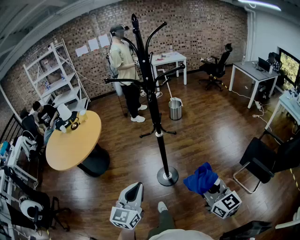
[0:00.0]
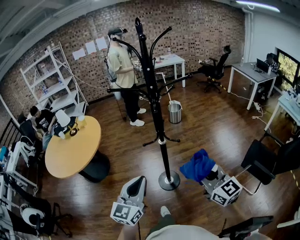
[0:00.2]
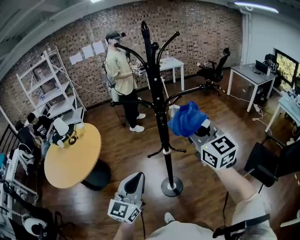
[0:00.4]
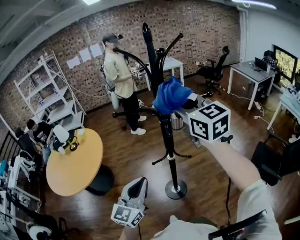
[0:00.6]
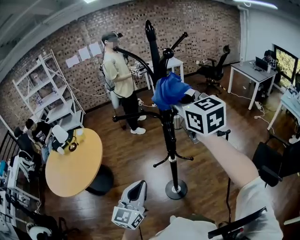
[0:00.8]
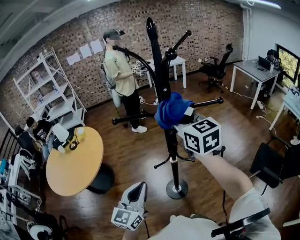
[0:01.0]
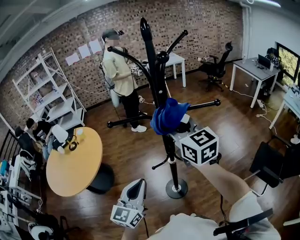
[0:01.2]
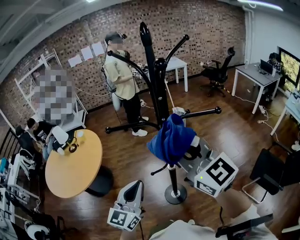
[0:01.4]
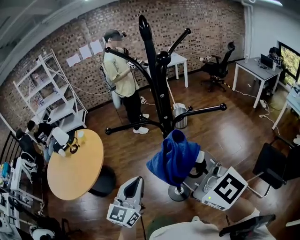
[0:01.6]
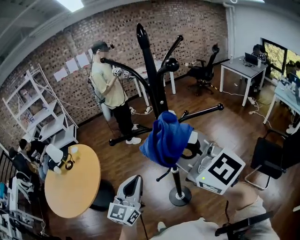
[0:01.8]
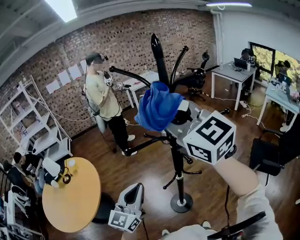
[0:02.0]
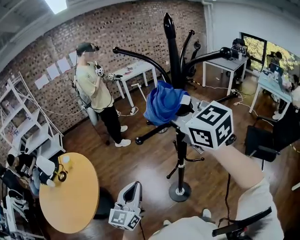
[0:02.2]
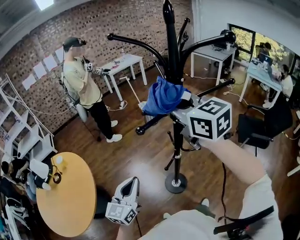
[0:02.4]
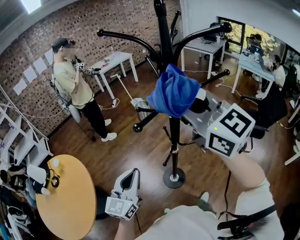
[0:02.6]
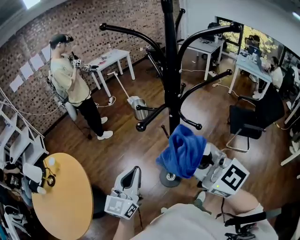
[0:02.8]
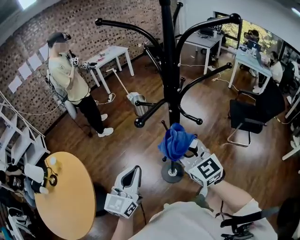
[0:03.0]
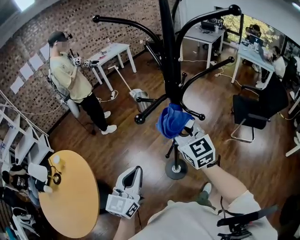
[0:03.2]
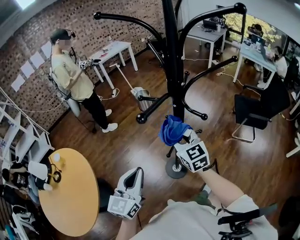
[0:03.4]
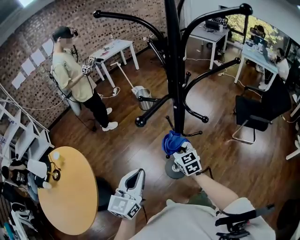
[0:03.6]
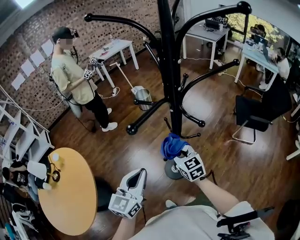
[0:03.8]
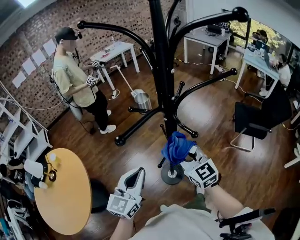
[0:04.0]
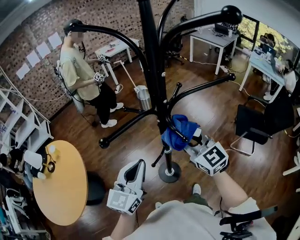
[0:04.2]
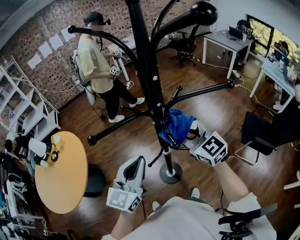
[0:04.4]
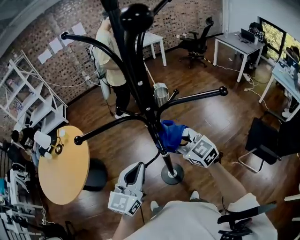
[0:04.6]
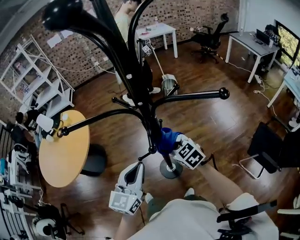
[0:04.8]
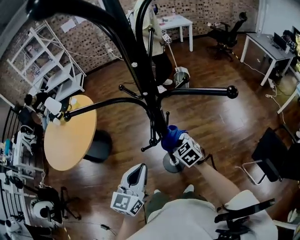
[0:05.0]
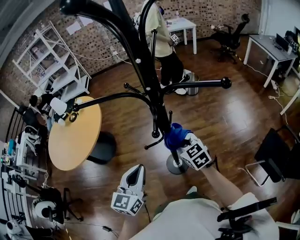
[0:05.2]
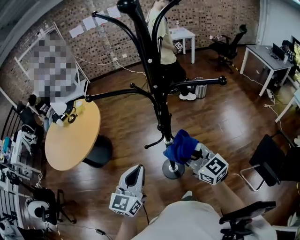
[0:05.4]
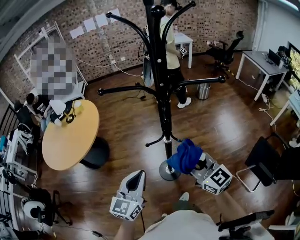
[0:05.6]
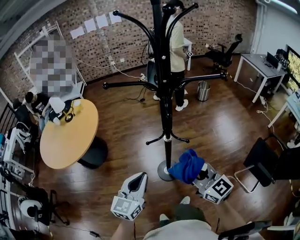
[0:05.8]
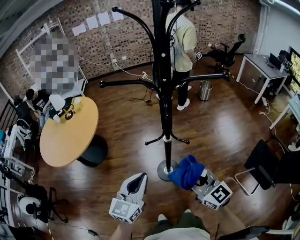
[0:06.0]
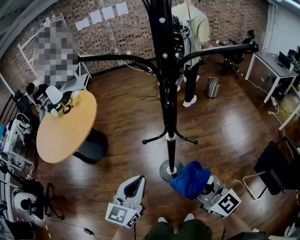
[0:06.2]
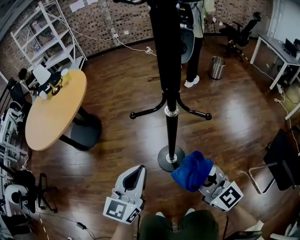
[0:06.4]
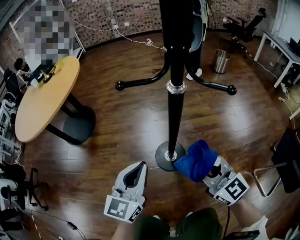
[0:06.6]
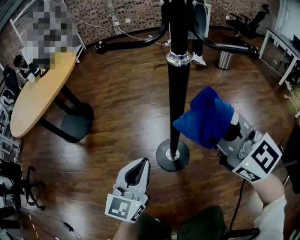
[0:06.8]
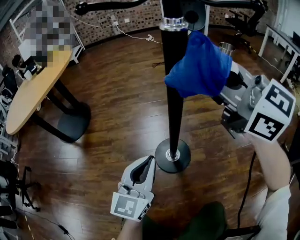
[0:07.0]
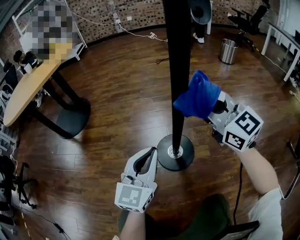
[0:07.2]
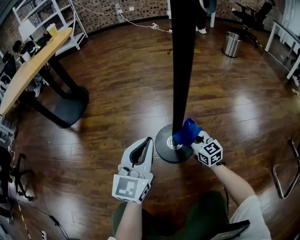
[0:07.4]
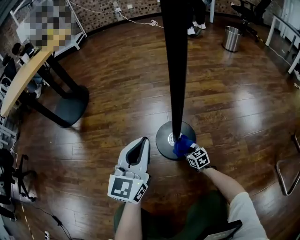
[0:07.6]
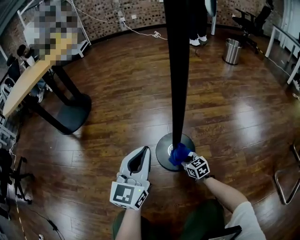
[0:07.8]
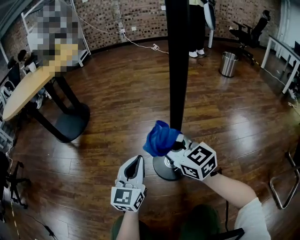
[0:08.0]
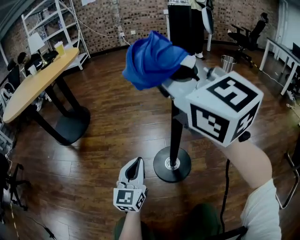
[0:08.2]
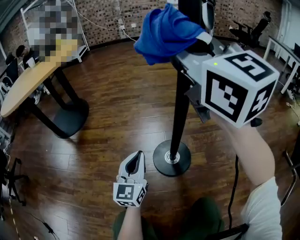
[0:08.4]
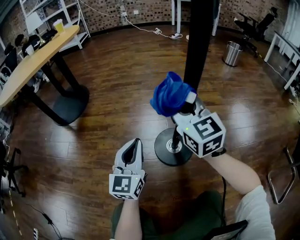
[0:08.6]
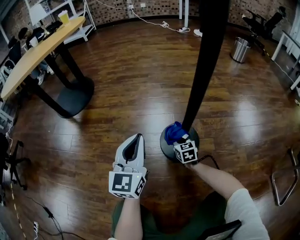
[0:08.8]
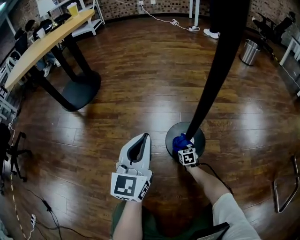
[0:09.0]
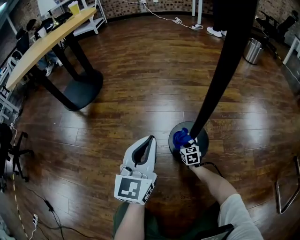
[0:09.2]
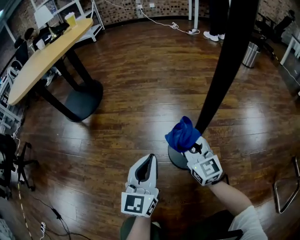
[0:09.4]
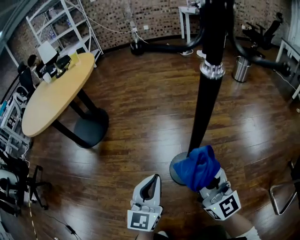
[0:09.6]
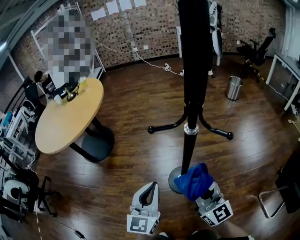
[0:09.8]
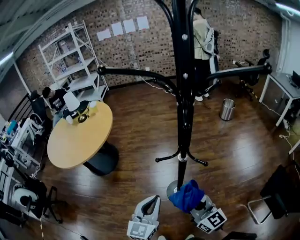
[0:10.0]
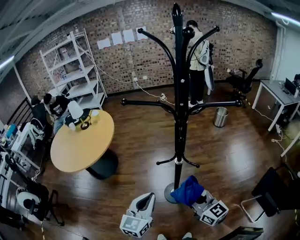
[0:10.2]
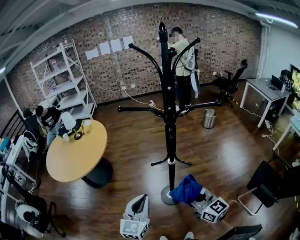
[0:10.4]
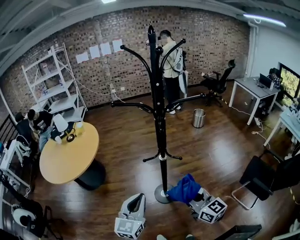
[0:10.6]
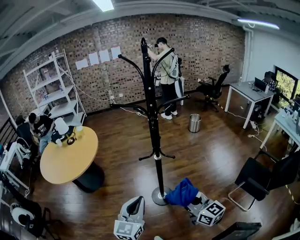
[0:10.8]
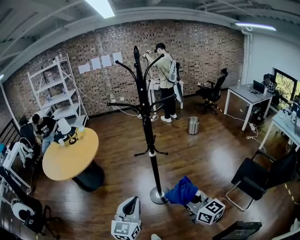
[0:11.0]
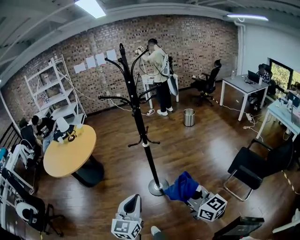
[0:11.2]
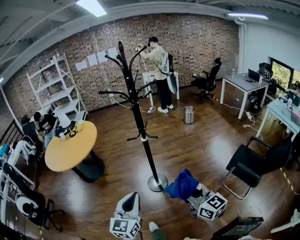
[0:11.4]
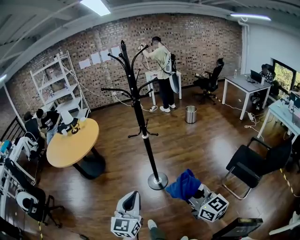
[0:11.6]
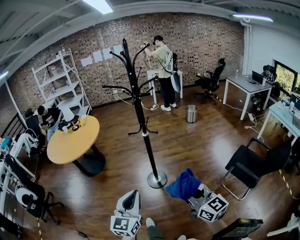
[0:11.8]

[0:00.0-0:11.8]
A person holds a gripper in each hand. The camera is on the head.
0:00.0 to 0:01.4: The left gripper shifts roughly 20 cm forward, while the right gripper travels forward, upward and to the left by approximately 40 cm.
0:01.4 to 0:03.0: The left gripper shifts by some 15 cm, and rotates roughly 30 degrees. Meanwhile the right gripper goes up and down, approximately 30 cm each way, reversing 3 times, and swivels about 40 degrees.
0:03.0 to 0:04.4: The left gripper shifts roughly 10 cm to the right, while the right gripper moves forward and to the right, some 15 cm, goes downward and returns, about 20 cm each way, and rotates approximately 20 degrees.
0:04.4 to 0:06.0: The grippers both shift backward and downward by about 20 cm. The left gripper turns by roughly 20 degrees. Meanwhile the right gripper changes its angle by about 20 degrees.
0:06.0 to 0:07.4: The right gripper swings up and down, some 80 cm each way, with 2 reversals, while the left gripper goes approximately 60 cm downward.
0:07.4 to 0:08.8: The right gripper moves up and down over approximately 70 cm, changing direction 2 times, and swivels approximately 20 degrees; the left gripper travels to the left by about 10 cm.
0:08.8 to 0:10.4: The right gripper is displaced upward by about 80 cm, and tips its fingers upward by about 30 degrees, while the left gripper goes about 60 cm upward.
0:10.4 to 0:11.8: The two grippers go roughly 30 cm backward.

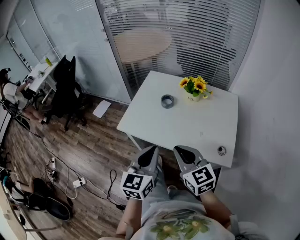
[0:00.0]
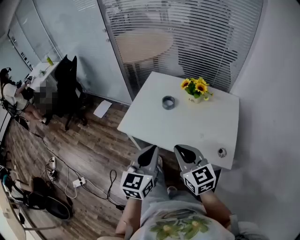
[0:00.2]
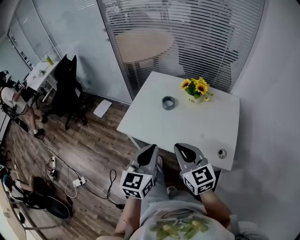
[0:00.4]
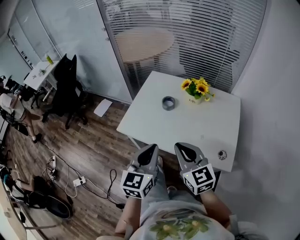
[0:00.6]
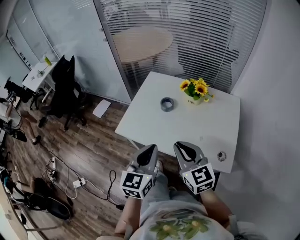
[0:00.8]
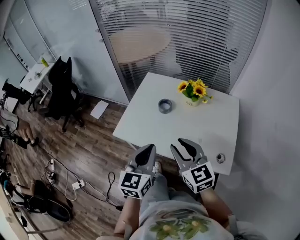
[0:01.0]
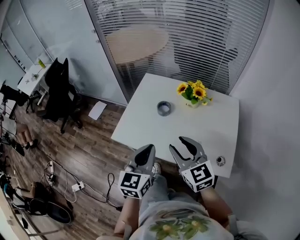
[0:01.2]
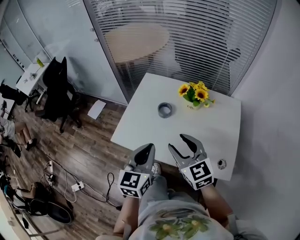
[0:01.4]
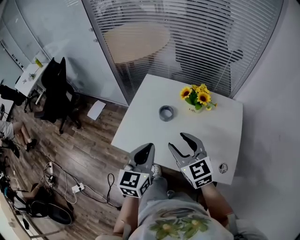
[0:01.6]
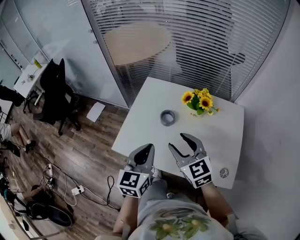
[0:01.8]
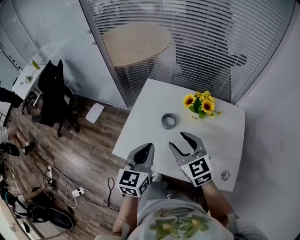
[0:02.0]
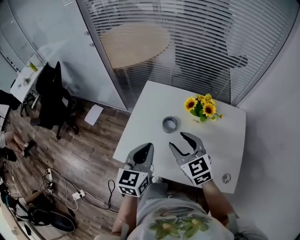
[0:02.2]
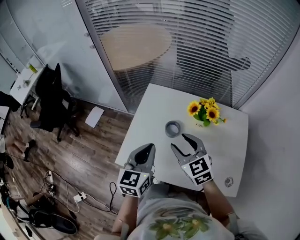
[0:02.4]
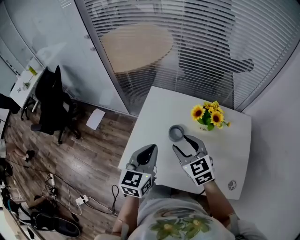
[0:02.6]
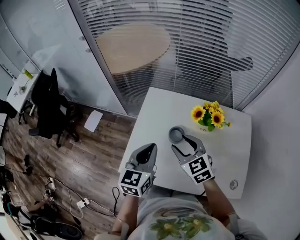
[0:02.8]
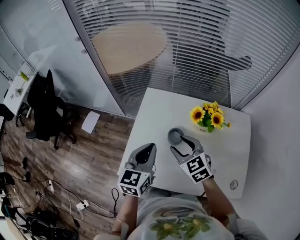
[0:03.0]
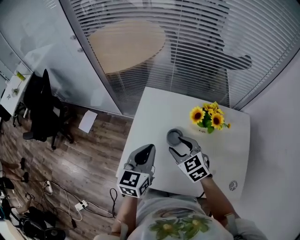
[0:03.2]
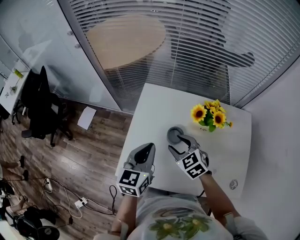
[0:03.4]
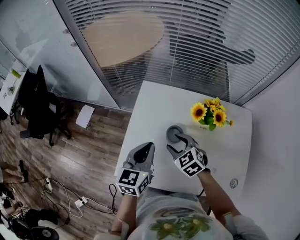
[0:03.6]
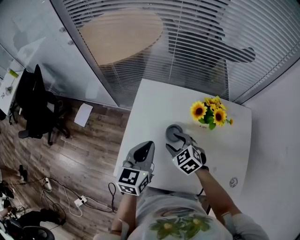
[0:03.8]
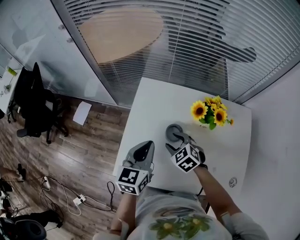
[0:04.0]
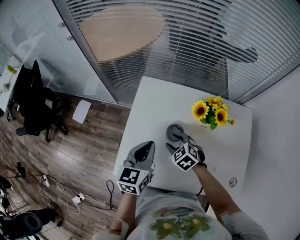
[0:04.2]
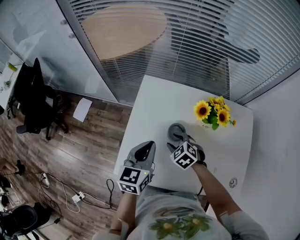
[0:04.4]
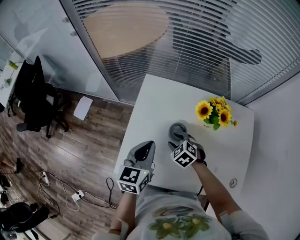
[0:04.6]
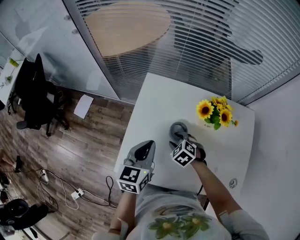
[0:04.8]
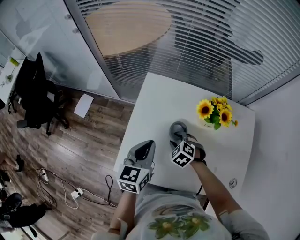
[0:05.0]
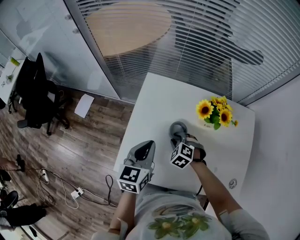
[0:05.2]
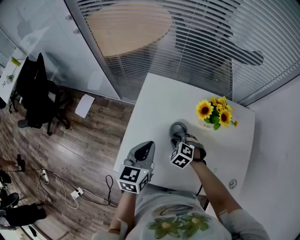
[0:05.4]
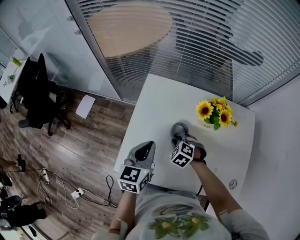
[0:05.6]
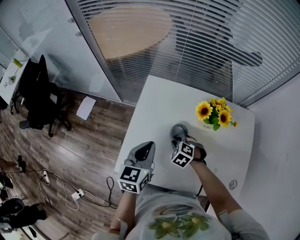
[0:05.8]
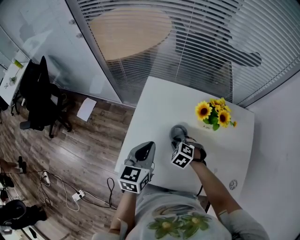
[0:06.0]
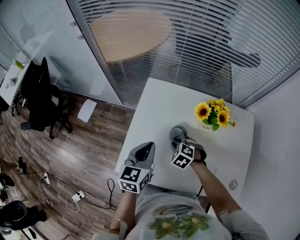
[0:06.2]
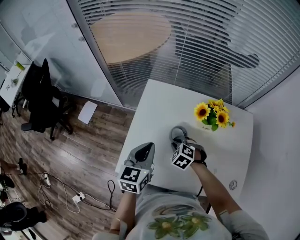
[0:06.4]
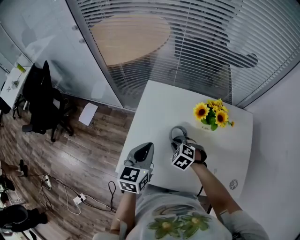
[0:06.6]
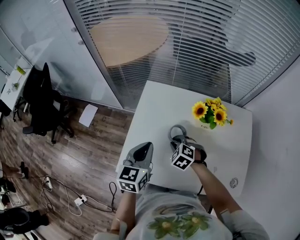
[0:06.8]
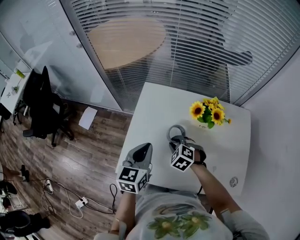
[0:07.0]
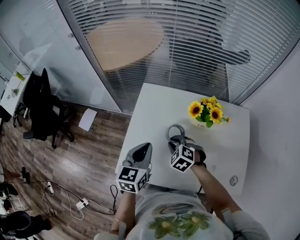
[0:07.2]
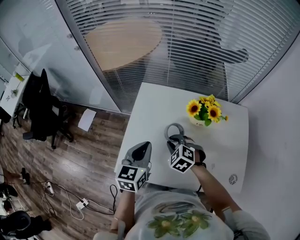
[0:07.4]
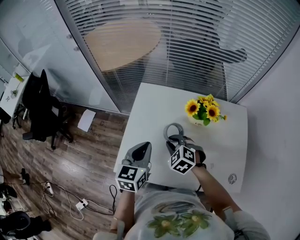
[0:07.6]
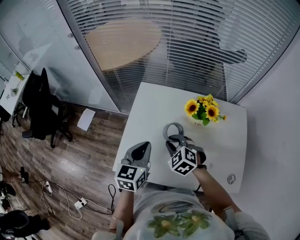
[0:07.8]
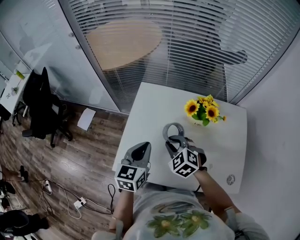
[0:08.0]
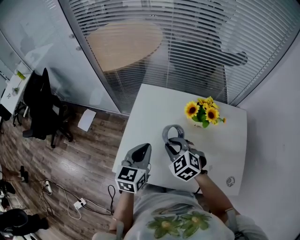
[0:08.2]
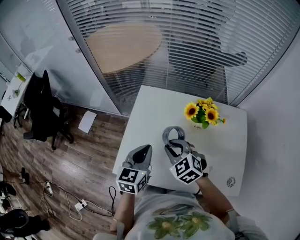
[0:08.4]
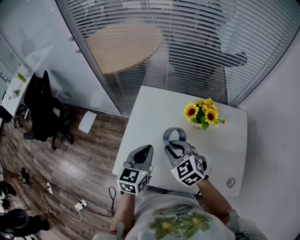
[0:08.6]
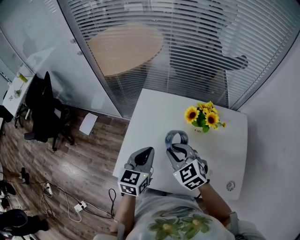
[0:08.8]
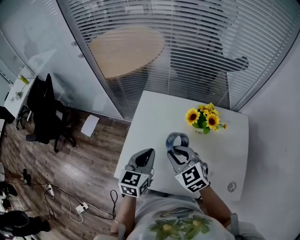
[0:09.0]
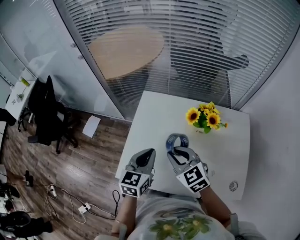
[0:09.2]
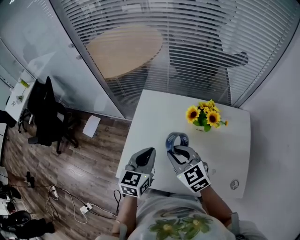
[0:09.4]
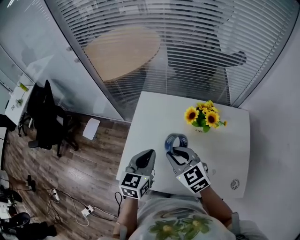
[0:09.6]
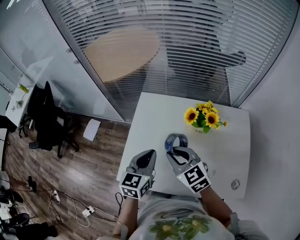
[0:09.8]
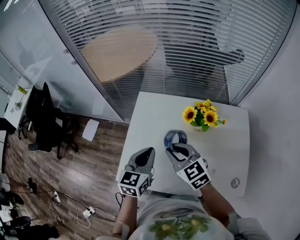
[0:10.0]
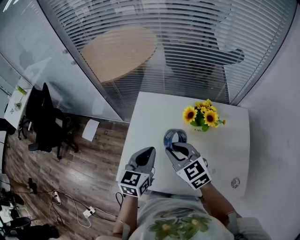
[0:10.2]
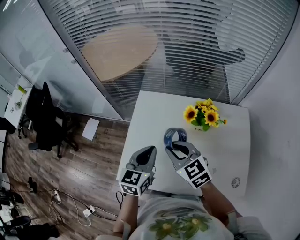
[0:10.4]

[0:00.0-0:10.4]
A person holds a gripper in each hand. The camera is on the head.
0:00.0 to 0:01.4: The two grippers go approximately 10 cm forward. The right gripper opens.
0:01.4 to 0:03.0: The right gripper shifts roughly 20 cm forward and downward, while the left gripper moves forward, roughly 20 cm.
0:03.0 to 0:04.4: The left gripper heads downward, covering roughly 5 cm; the right gripper moves downward, roughly 15 cm, and swivels about 30 degrees.
0:04.4 to 0:06.0: The right gripper closes up.
0:06.0 to 0:07.4: The right gripper travels upward by approximately 10 cm.
0:07.4 to 0:09.0: The right gripper moves upward, roughly 10 cm, and turns by roughly 30 degrees.
0:09.0 to 0:10.4: There are only small adjustments of the grippers.

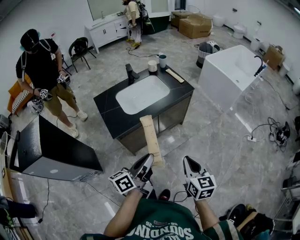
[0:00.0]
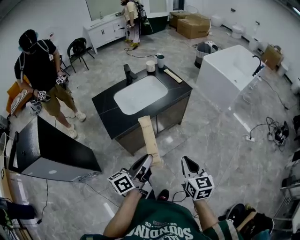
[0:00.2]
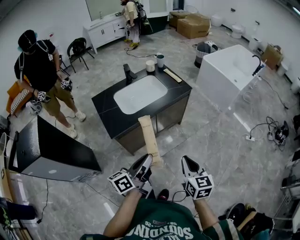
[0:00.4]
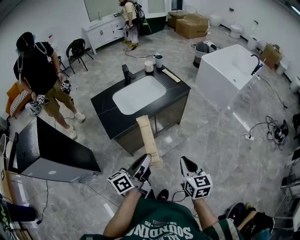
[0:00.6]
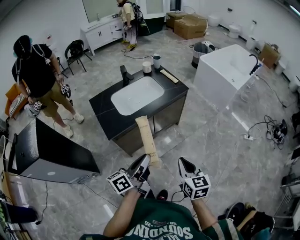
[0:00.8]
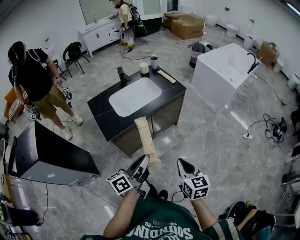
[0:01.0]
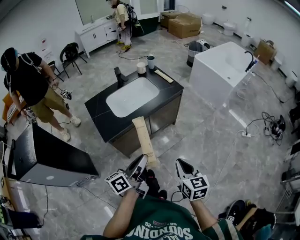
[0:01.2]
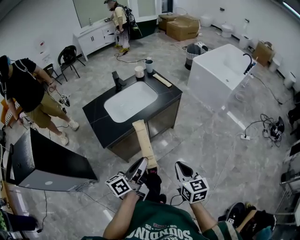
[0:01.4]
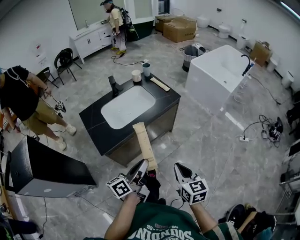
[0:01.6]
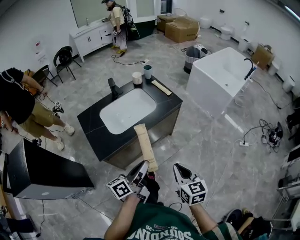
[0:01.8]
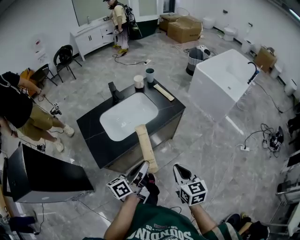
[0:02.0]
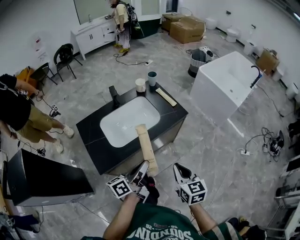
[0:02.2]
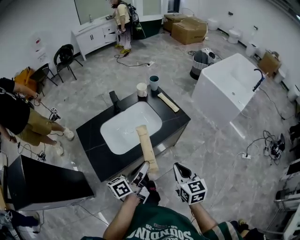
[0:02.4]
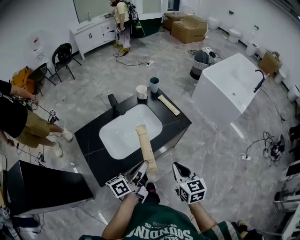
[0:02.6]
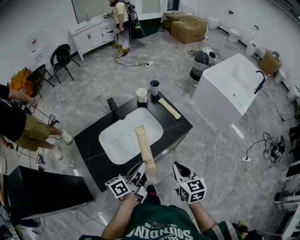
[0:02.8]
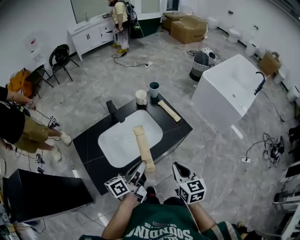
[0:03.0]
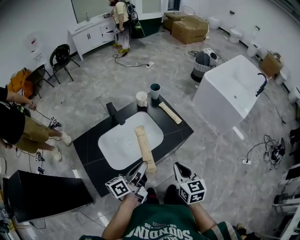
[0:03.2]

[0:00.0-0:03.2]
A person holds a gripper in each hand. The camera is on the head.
0:00.0 to 0:01.6: Both grippers travel together forward, some 5 cm.
0:01.6 to 0:03.2: Both grippers move forward, roughly 35 cm.
